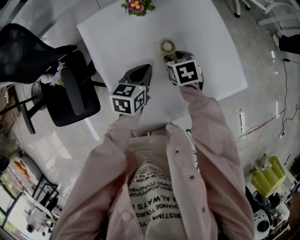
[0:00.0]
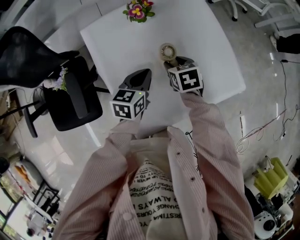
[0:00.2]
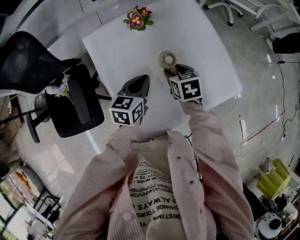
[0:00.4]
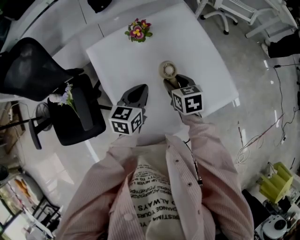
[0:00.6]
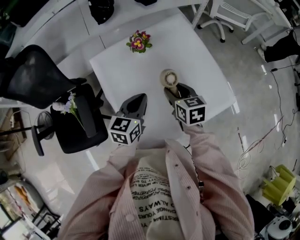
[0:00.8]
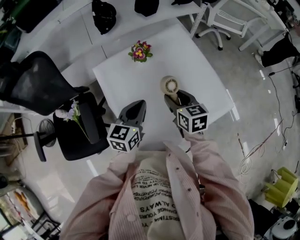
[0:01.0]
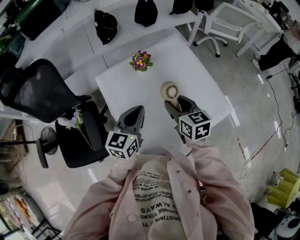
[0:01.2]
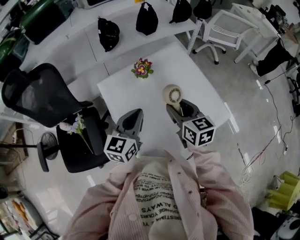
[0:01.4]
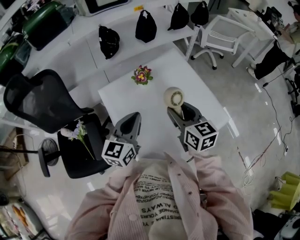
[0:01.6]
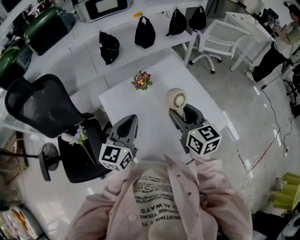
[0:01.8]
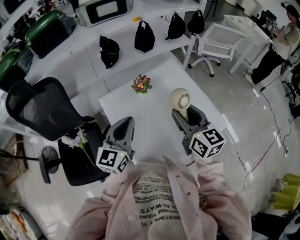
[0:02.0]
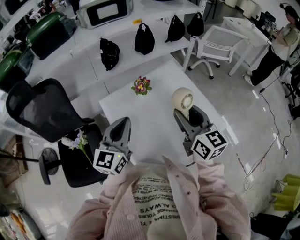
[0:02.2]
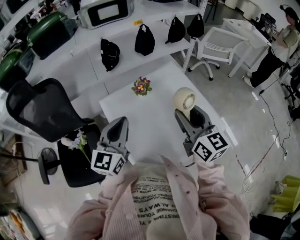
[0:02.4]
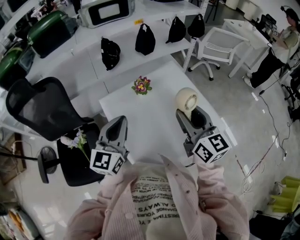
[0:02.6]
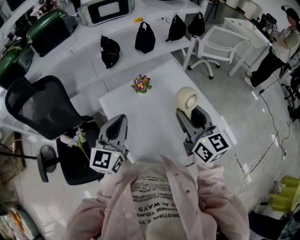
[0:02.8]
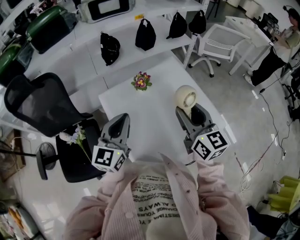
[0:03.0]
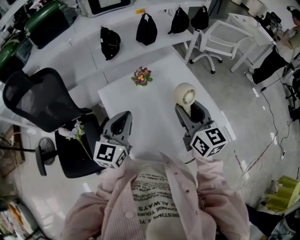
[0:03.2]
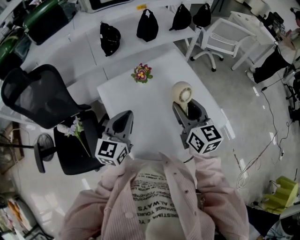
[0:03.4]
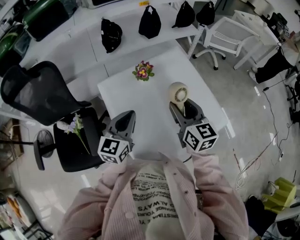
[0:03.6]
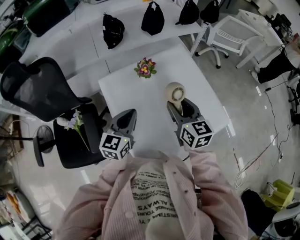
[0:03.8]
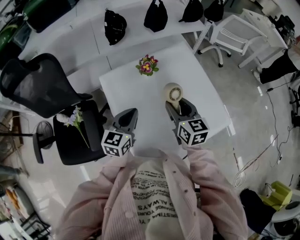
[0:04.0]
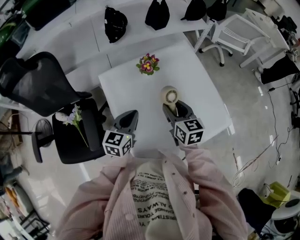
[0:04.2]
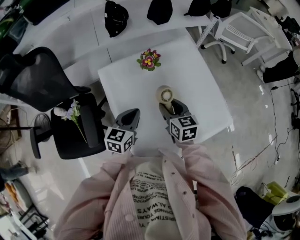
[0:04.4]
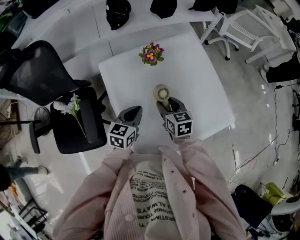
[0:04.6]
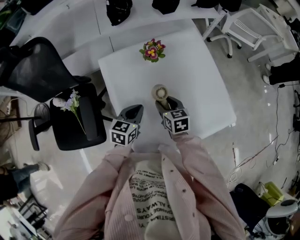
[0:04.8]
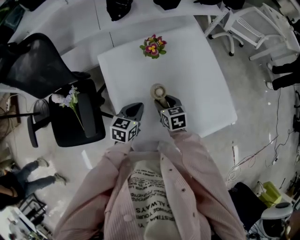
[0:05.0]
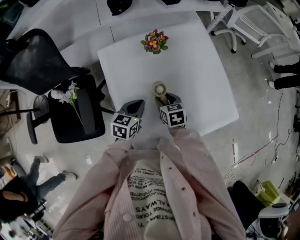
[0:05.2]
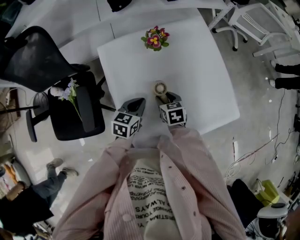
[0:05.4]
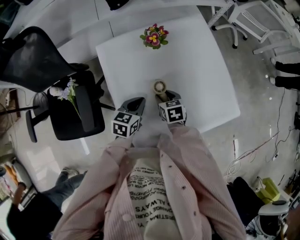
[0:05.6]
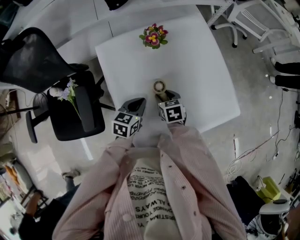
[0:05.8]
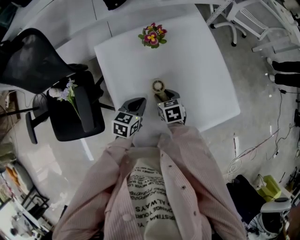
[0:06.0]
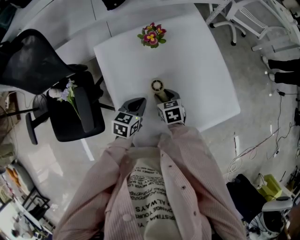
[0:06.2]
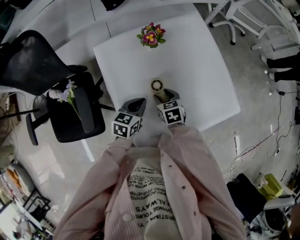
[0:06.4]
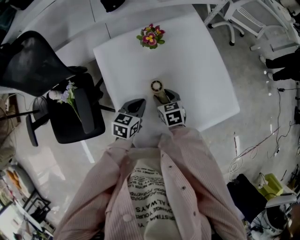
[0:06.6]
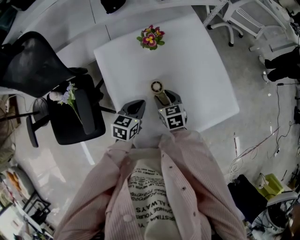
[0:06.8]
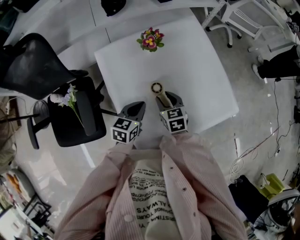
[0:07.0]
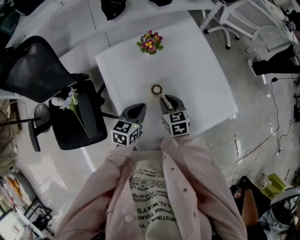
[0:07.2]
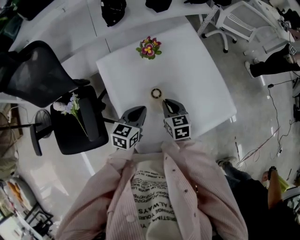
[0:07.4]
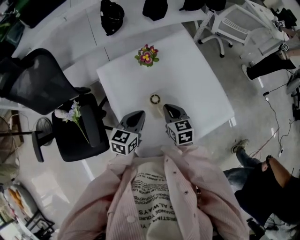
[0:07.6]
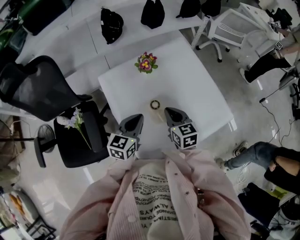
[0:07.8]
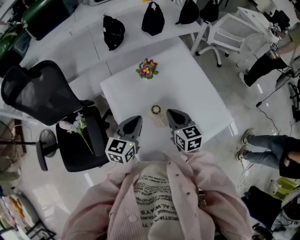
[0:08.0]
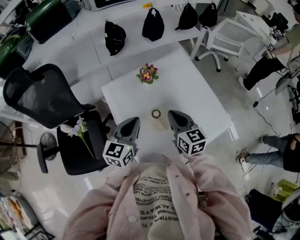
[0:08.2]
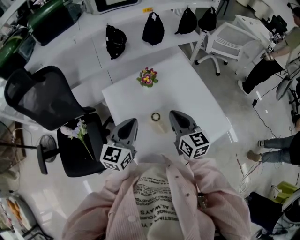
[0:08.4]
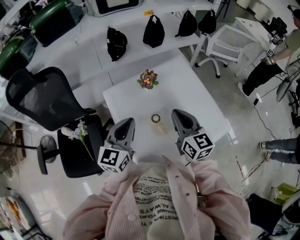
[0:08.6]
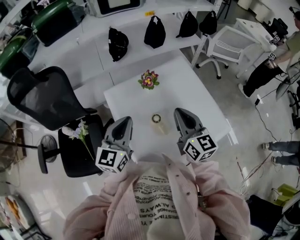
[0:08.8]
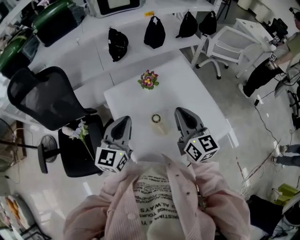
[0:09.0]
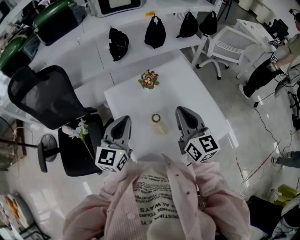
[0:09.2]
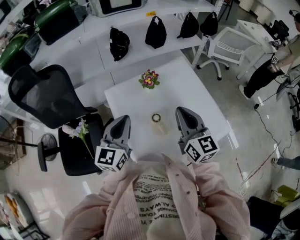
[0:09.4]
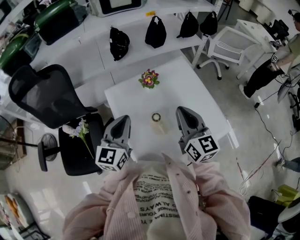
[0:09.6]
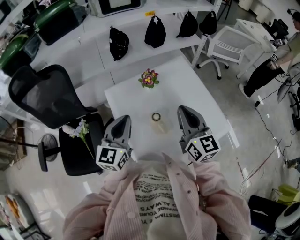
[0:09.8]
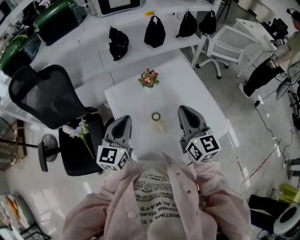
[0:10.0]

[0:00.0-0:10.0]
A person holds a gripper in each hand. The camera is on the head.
0:00.0 to 0:01.4: Both grippers travel together upward, approximately 20 cm. The right gripper tips its fingers upward by some 40 degrees, while the left gripper swivels approximately 30 degrees.
0:01.4 to 0:02.8: The left gripper is displaced upward and to the left by some 10 cm, while the right gripper goes approximately 15 cm upward, and changes its angle by some 20 degrees.
0:02.8 to 0:04.2: Both grippers travel together downward, some 20 cm. The right gripper swivels some 20 degrees. The left gripper changes its angle by roughly 20 degrees.
0:04.2 to 0:05.8: The left gripper shifts roughly 15 cm downward; the right gripper goes some 20 cm downward, and turns by roughly 30 degrees.
0:05.8 to 0:07.2: The right gripper heads upward, covering approximately 5 cm, and closes.
0:07.2 to 0:08.6: The two grippers go approximately 20 cm upward. The left gripper rotates approximately 30 degrees; the right gripper tips its fingers upward by some 30 degrees.
0:08.6 to 0:10.0: The right gripper moves about 5 cm.

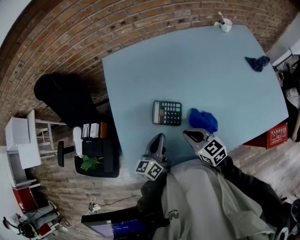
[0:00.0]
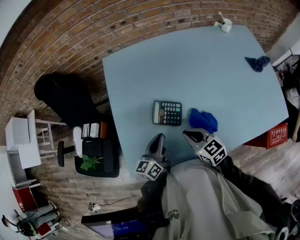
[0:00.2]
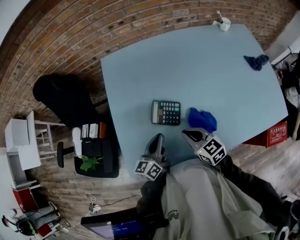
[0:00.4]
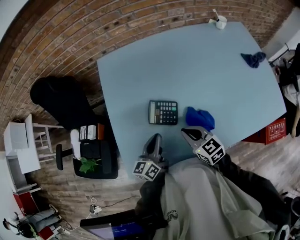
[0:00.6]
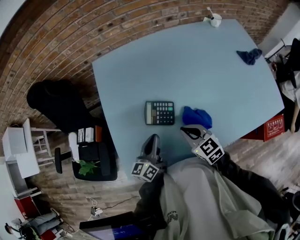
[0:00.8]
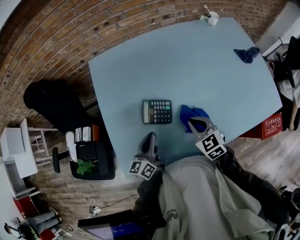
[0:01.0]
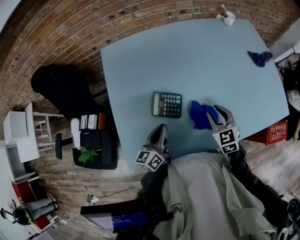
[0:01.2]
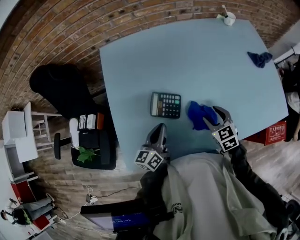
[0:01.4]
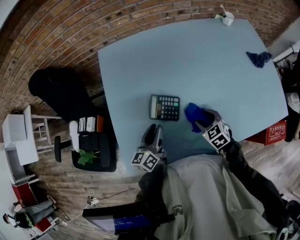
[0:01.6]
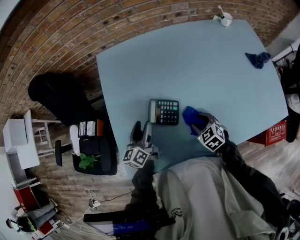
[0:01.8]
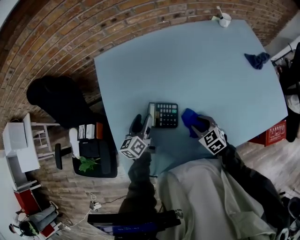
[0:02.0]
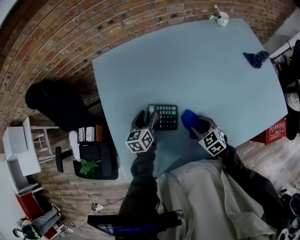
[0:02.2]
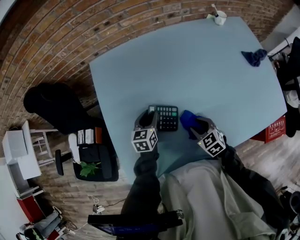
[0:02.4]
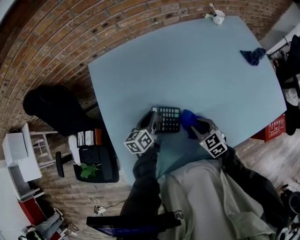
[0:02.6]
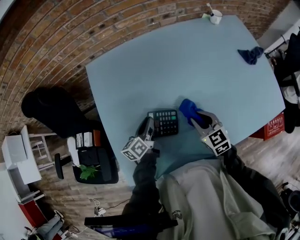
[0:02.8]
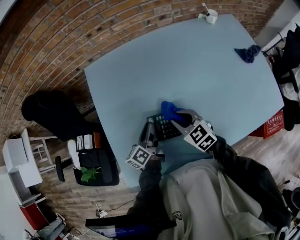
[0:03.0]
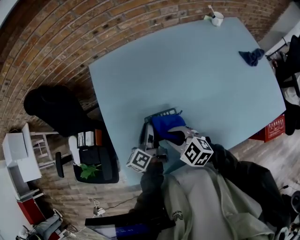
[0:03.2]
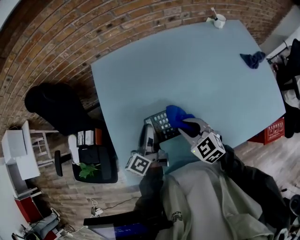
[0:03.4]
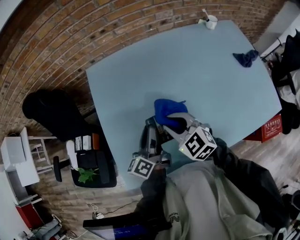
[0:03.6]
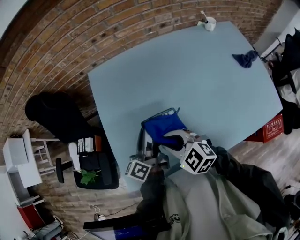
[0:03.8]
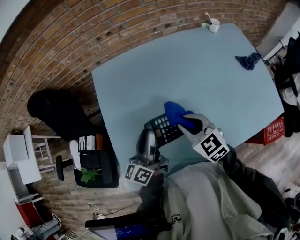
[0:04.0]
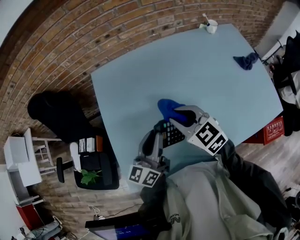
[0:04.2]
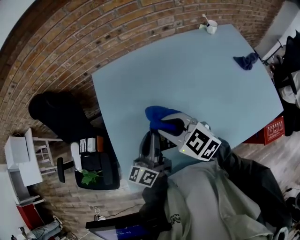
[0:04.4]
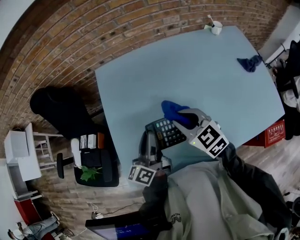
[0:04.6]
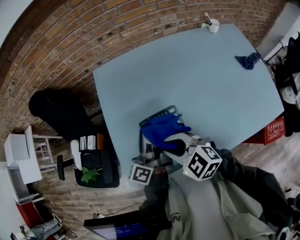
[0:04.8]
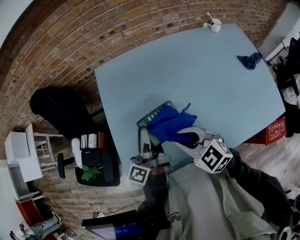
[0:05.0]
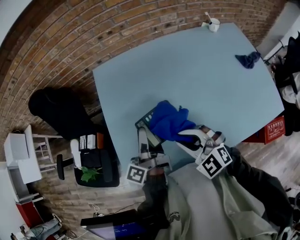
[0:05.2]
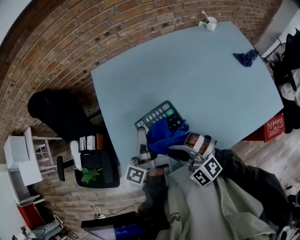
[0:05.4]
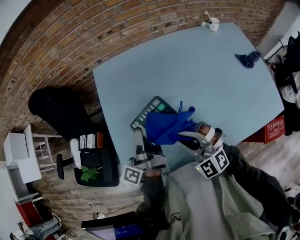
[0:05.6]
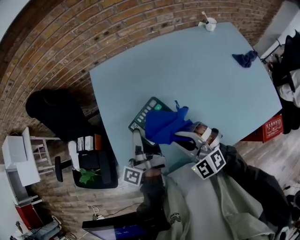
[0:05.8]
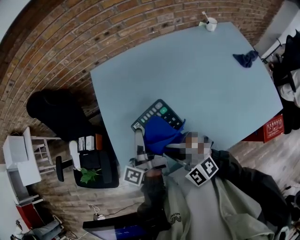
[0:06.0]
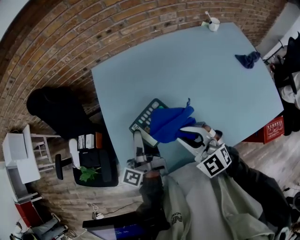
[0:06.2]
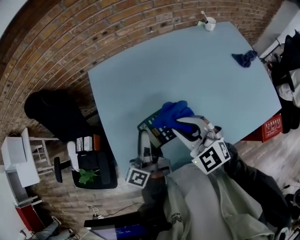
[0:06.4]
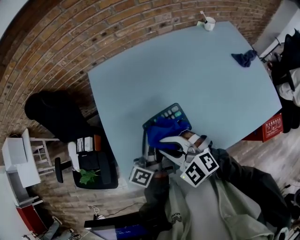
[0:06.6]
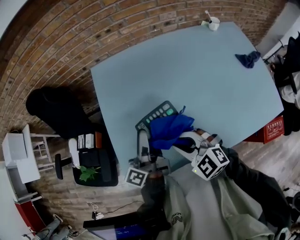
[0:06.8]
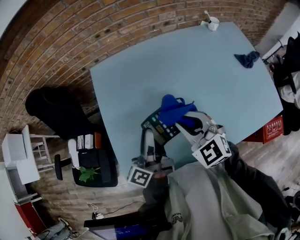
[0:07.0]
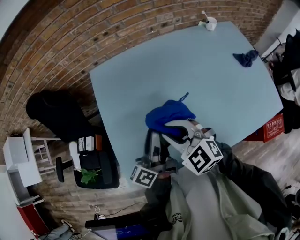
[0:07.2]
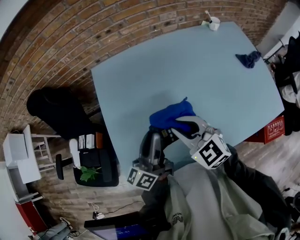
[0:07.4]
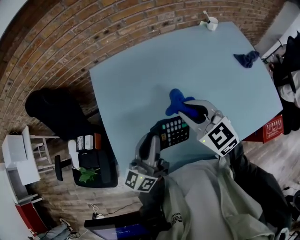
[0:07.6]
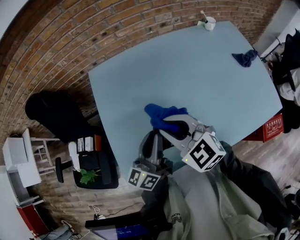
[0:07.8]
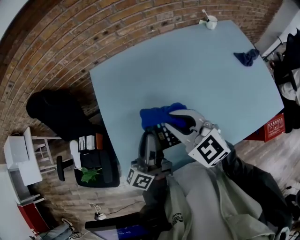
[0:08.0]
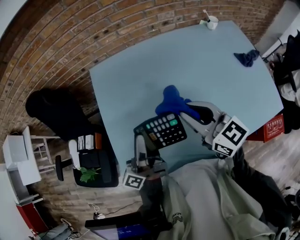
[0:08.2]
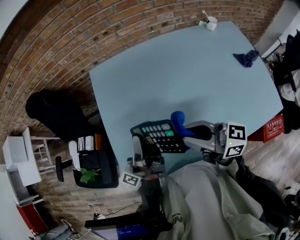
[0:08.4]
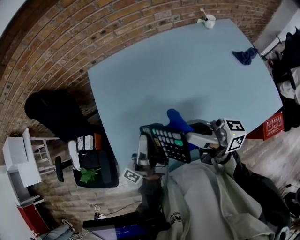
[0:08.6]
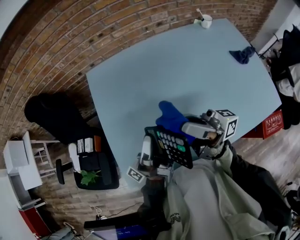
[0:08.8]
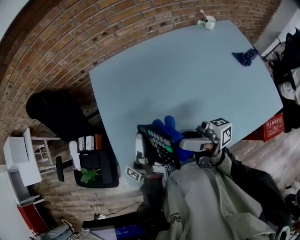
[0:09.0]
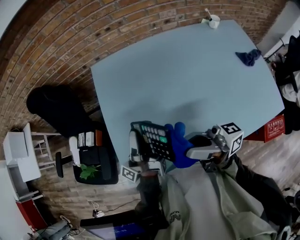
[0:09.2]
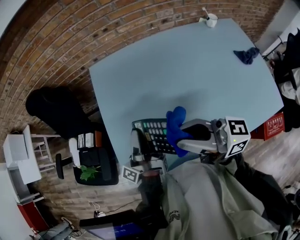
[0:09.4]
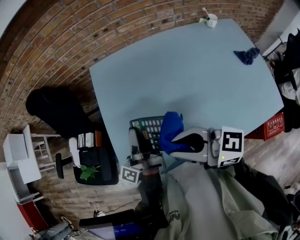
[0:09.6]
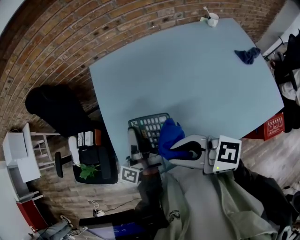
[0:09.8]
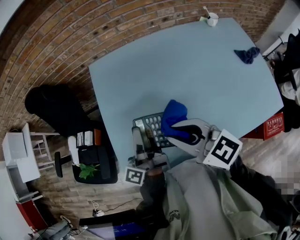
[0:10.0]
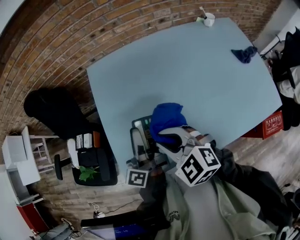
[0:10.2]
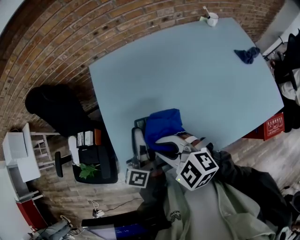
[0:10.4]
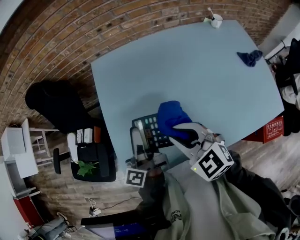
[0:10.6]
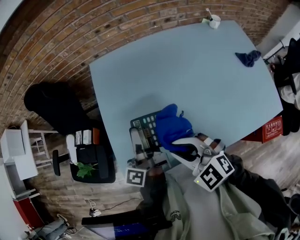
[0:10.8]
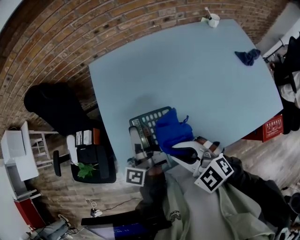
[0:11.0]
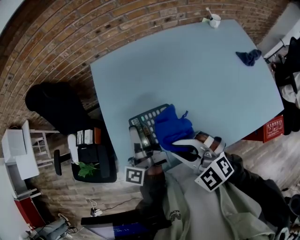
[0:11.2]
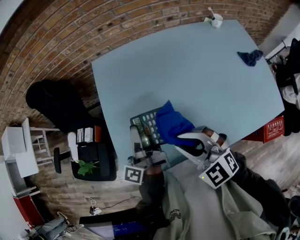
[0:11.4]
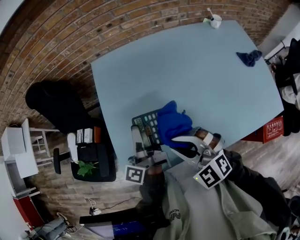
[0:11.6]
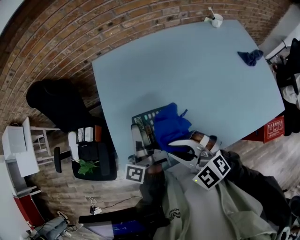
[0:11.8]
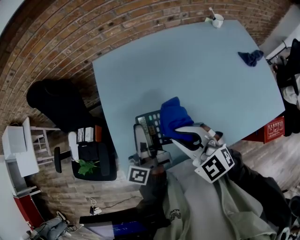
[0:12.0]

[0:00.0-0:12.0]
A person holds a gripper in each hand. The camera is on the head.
0:00.0 to 0:01.6: The left gripper opens up, while the right gripper travels to the right and downward by approximately 15 cm, changes its angle by roughly 30 degrees, and opens up.
0:01.6 to 0:03.0: The right gripper moves to the left, upward and forward, roughly 15 cm, and closes; the left gripper travels forward by approximately 5 cm, and opens and closes again.
0:03.0 to 0:04.4: The left gripper moves upward, some 15 cm, and turns by about 20 degrees. Meanwhile the right gripper is displaced upward and to the left by some 15 cm.
0:04.4 to 0:06.0: The right gripper is displaced backward by some 10 cm, and changes its angle by roughly 40 degrees, while the left gripper moves approximately 5 cm, and changes its angle by roughly 40 degrees.
0:06.0 to 0:07.6: The left gripper ends up about 5 cm from where it was, and rolls clockwise, seen from behind, by approximately 40 degrees; the right gripper swings left and right, about 10 cm each way, with 4 reversals, and swivels roughly 40 degrees.
0:07.6 to 0:09.0: The left gripper twists approximately 60 degrees counterclockwise, seen from behind, while the right gripper shifts by some 10 cm, and tilts its fingers some 60 degrees upward.
0:09.0 to 0:10.4: The left gripper rotates around the line of its fingers by about 40 degrees, clockwise from behind. Meanwhile the right gripper goes approximately 10 cm to the left and downward, and points its fingers some 70 degrees further downward.
0:10.4 to 0:12.0: The right gripper swings left and right, roughly 5 cm each way, with 2 reversals.

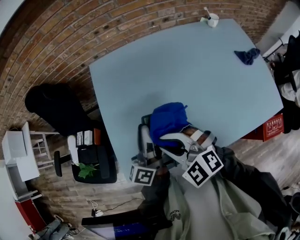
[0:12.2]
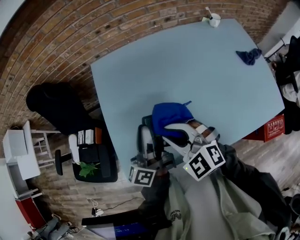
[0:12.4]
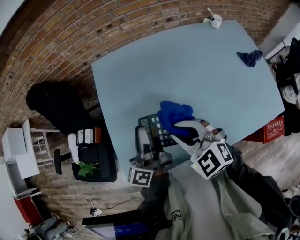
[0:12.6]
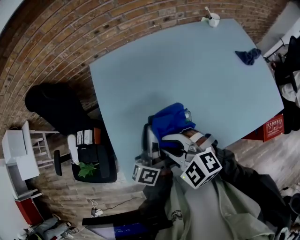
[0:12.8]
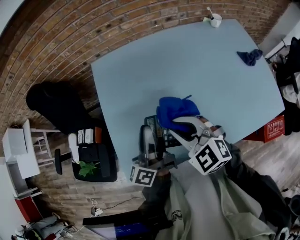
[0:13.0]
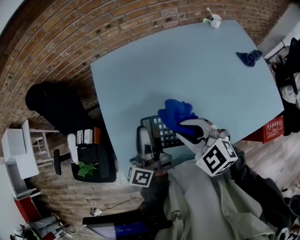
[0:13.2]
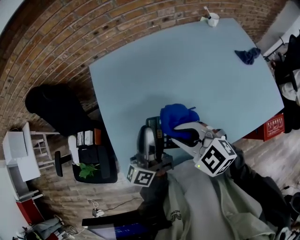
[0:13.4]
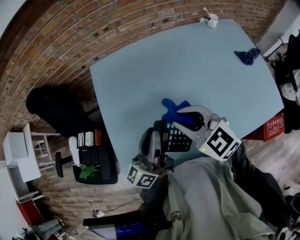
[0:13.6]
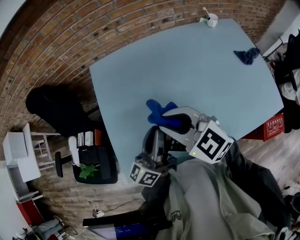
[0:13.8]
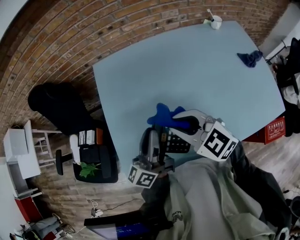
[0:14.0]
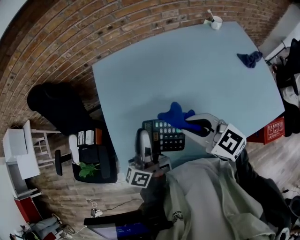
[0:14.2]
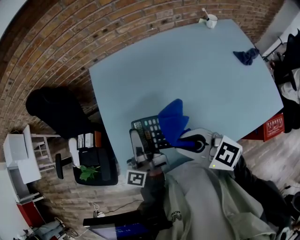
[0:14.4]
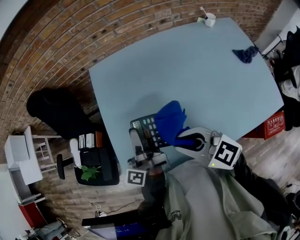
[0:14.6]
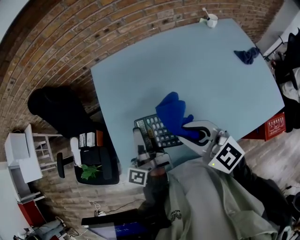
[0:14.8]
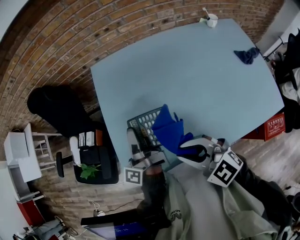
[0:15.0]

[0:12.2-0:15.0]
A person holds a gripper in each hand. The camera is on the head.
0:12.2 to 0:13.6: The right gripper swings left and right, approximately 10 cm each way, with 2 reversals, and rotates approximately 20 degrees. Meanwhile the left gripper rotates some 20 degrees.
0:13.6 to 0:15.0: The left gripper goes some 10 cm to the left and forward, and changes its angle by approximately 40 degrees. The right gripper heads backward and to the left, covering about 10 cm.
